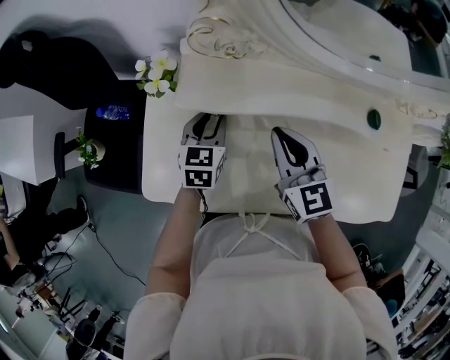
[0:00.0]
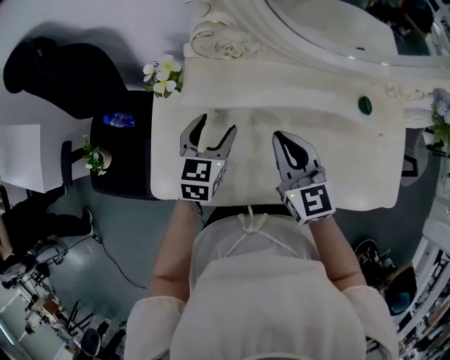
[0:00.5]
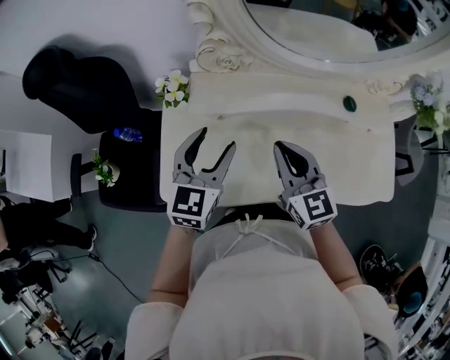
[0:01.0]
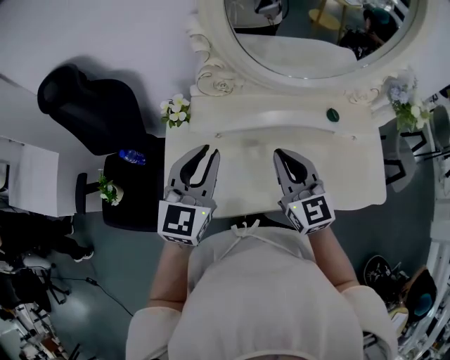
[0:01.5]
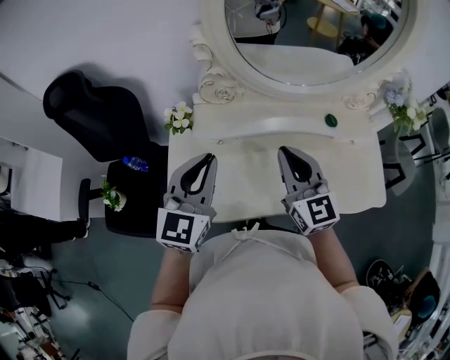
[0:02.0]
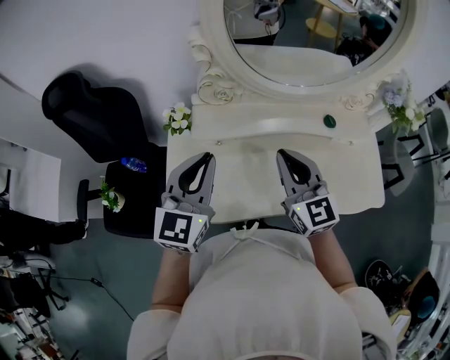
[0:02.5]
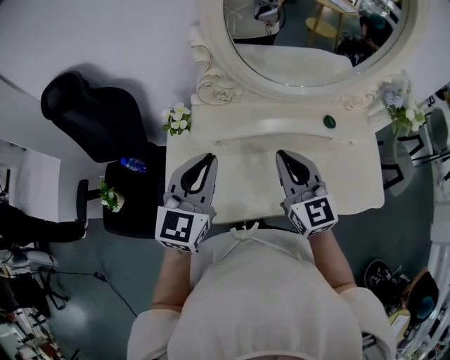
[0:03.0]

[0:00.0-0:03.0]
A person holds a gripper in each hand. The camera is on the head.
0:00.0 to 0:01.5: The right gripper is displaced upward and backward by approximately 15 cm, while the left gripper is displaced upward and backward by roughly 30 cm, turns by some 30 degrees, and opens, then closes again.
0:01.5 to 0:03.0: The grippers make only small movements.

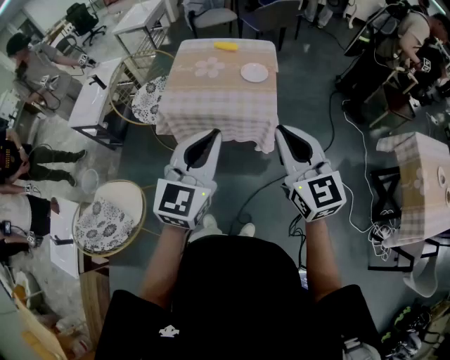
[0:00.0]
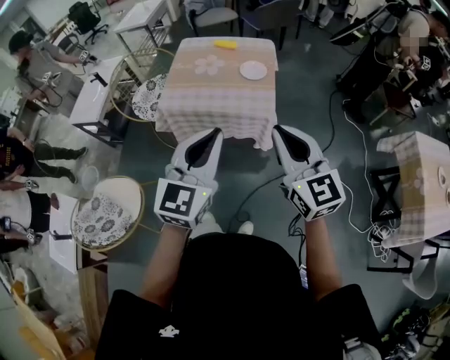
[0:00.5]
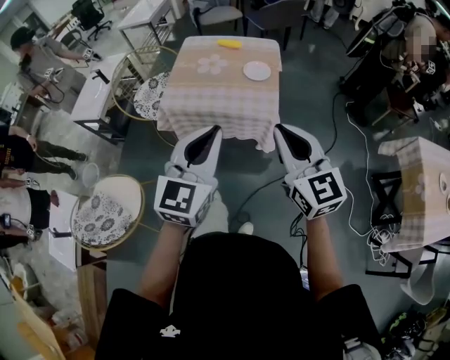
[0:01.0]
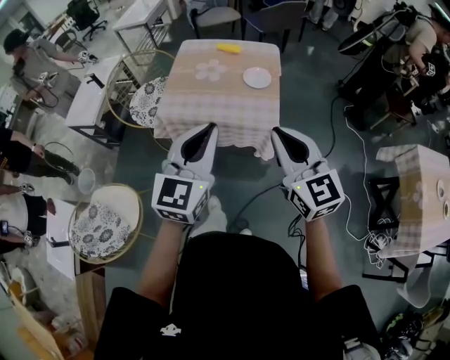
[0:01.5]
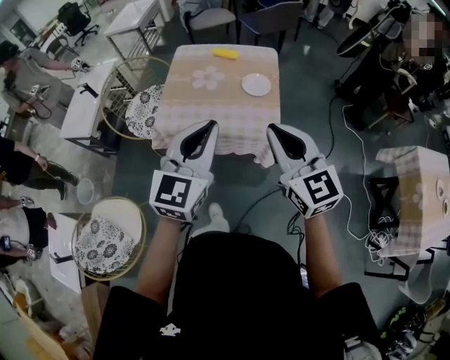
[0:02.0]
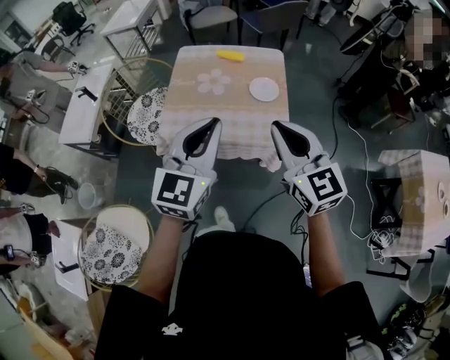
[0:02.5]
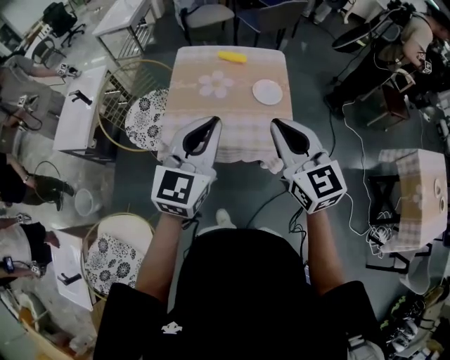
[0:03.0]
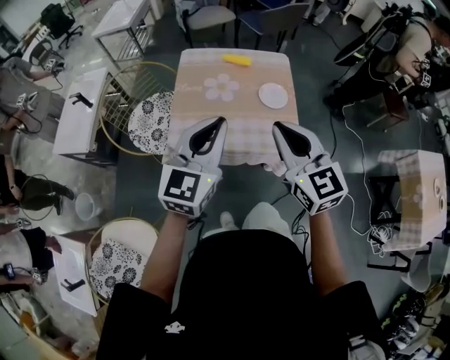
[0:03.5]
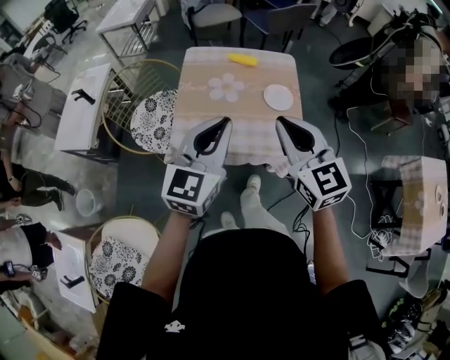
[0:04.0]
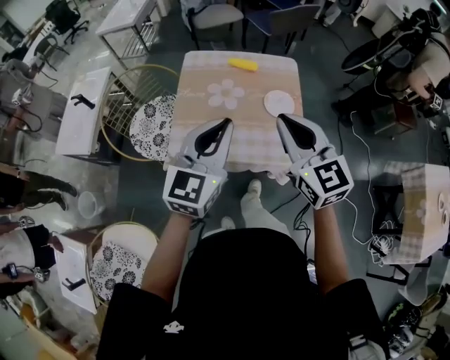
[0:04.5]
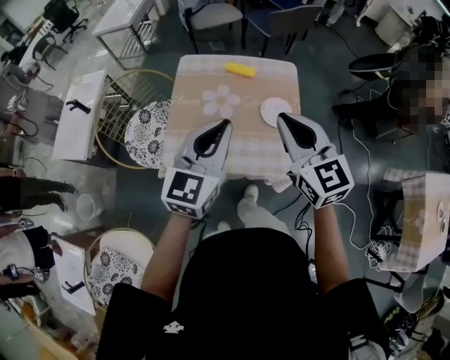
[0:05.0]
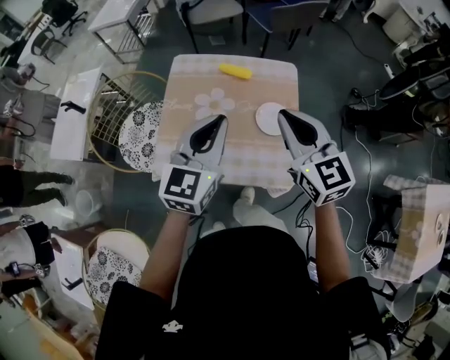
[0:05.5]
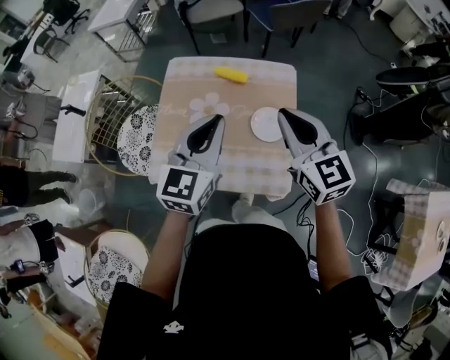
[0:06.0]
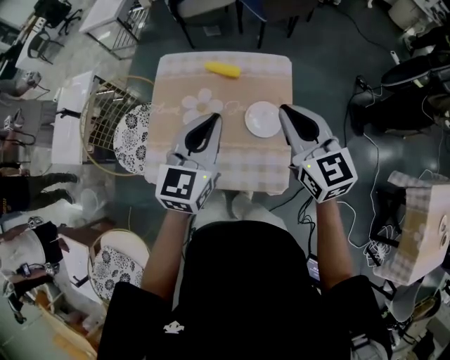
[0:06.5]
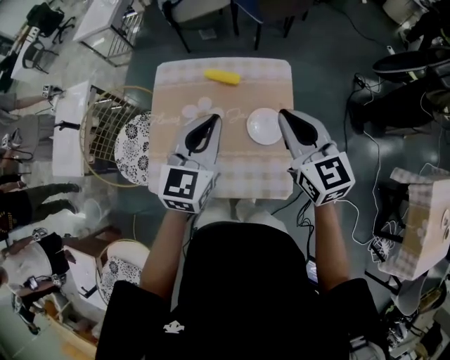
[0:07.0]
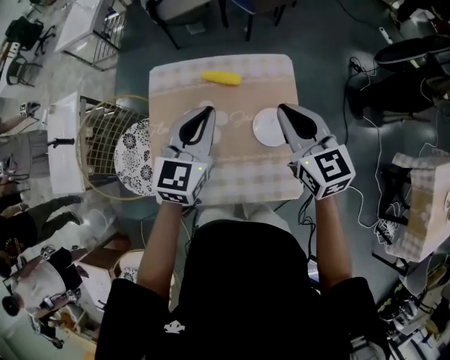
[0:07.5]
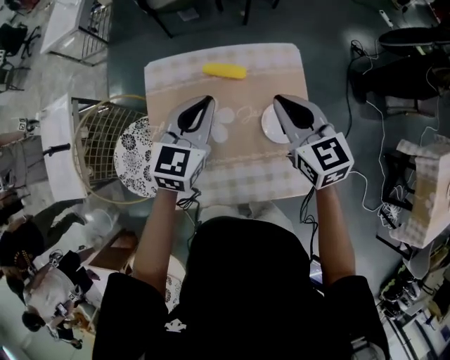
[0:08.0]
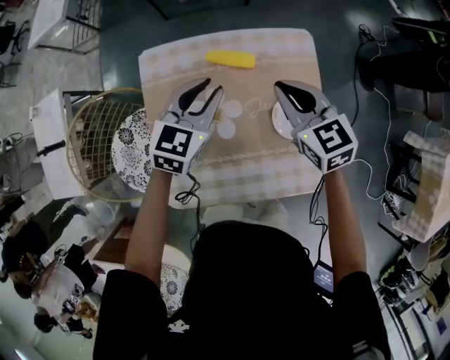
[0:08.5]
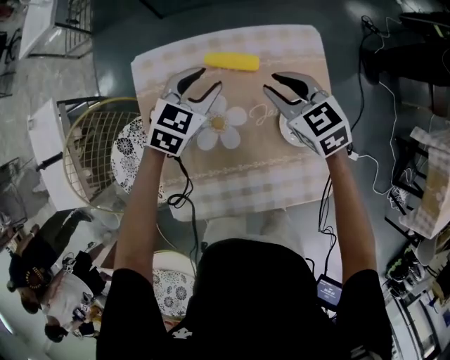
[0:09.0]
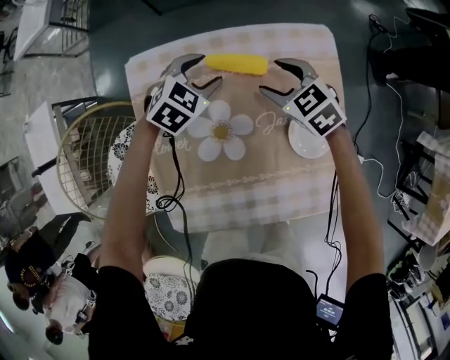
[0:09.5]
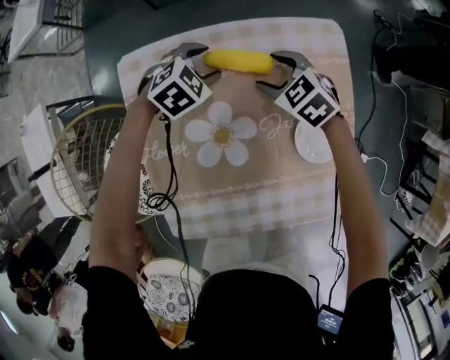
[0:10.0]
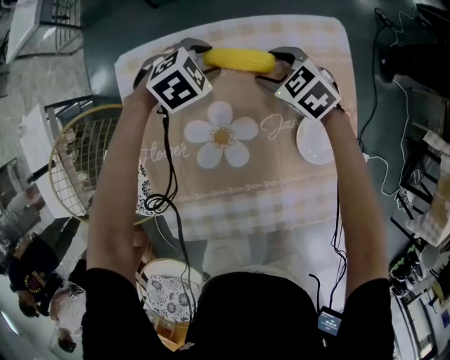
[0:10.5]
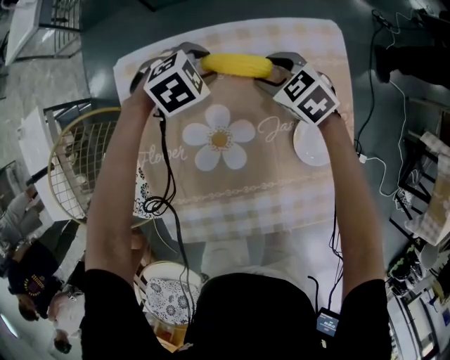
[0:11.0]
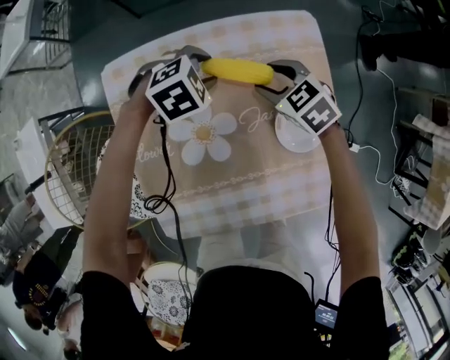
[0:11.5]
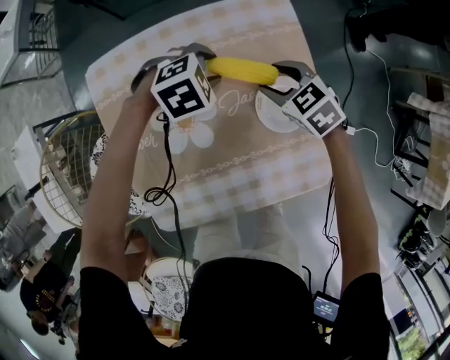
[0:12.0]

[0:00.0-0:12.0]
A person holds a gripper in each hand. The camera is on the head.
0:00.0 to 0:02.0: Both grippers travel together forward, approximately 15 cm.
0:02.0 to 0:04.0: The grippers both shift forward and to the left by some 15 cm.
0:04.0 to 0:06.0: The grippers both shift forward and to the right by about 25 cm.
0:06.0 to 0:08.0: Both grippers move forward and downward, approximately 20 cm.
0:08.0 to 0:10.0: Both grippers travel together downward and forward, about 35 cm. The right gripper tilts its fingers some 30 degrees downward, and opens its fingers. The left gripper tips its fingers downward by roughly 40 degrees, and opens.
0:10.0 to 0:12.0: The left gripper ends up some 15 cm from where it was. Meanwhile the right gripper moves about 15 cm.

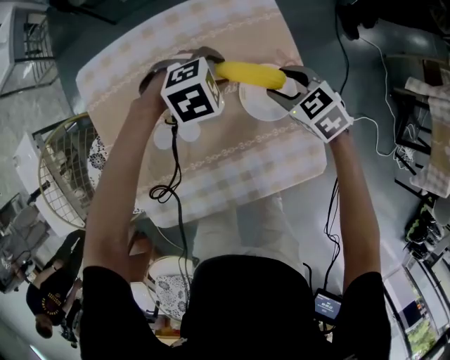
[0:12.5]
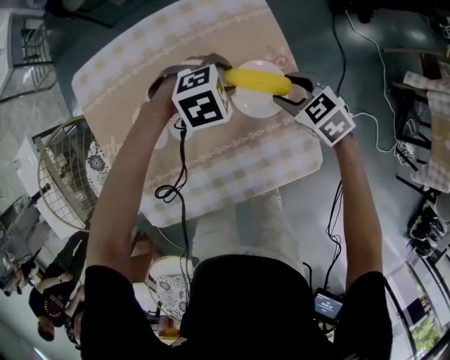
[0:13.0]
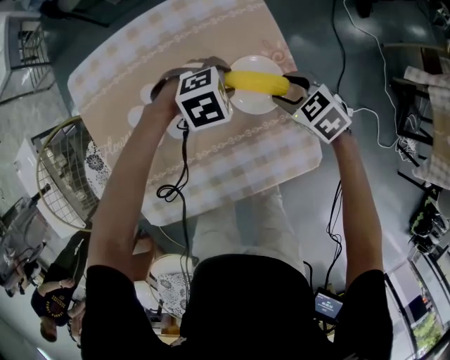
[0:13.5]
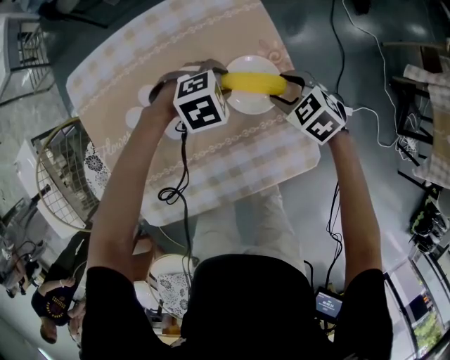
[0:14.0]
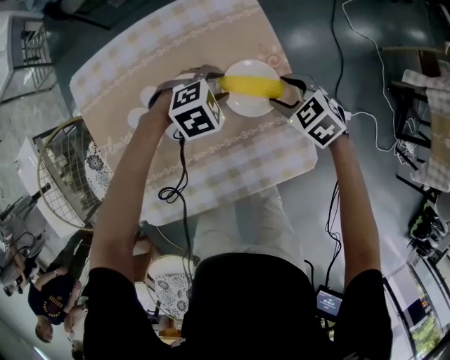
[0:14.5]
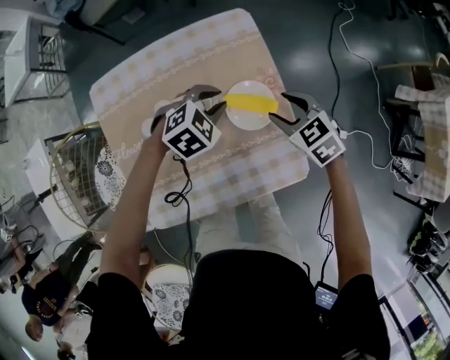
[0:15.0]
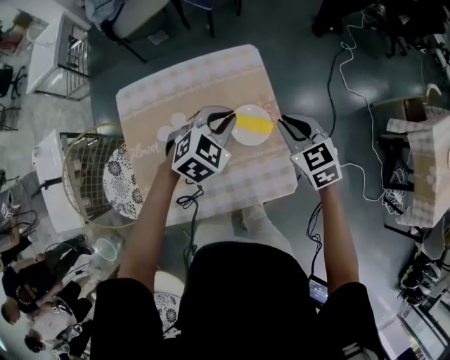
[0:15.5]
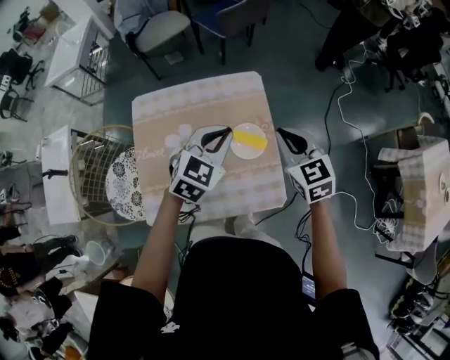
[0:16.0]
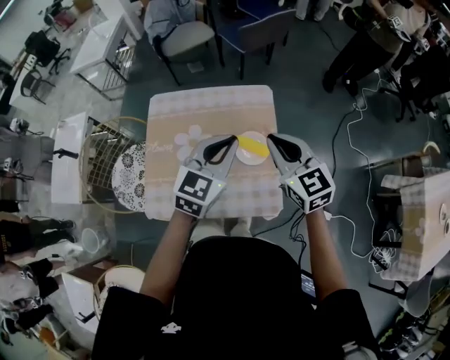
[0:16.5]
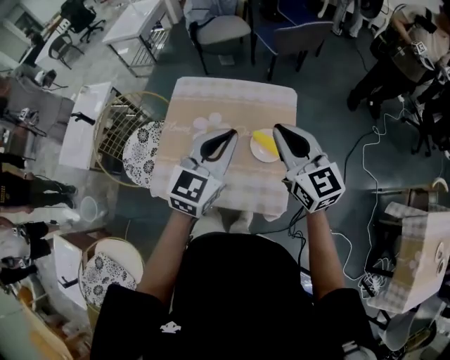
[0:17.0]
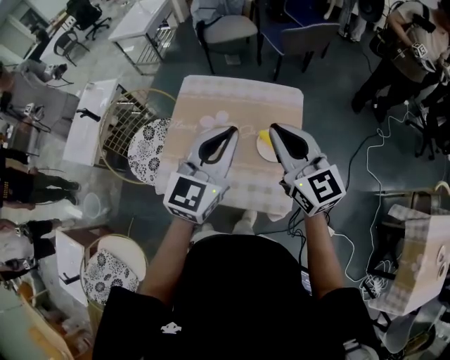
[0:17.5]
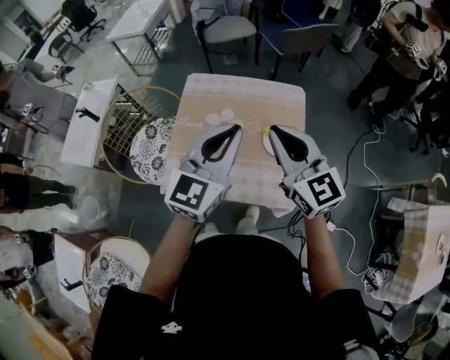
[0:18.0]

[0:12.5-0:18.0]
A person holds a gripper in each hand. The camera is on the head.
0:12.5 to 0:14.5: The right gripper moves approximately 5 cm; the left gripper changes place by approximately 5 cm.
0:14.5 to 0:16.0: Both grippers travel together upward, some 30 cm. The right gripper tilts its fingers some 30 degrees upward, and closes. The left gripper points its fingers roughly 30 degrees further upward, and closes its fingers.
0:16.0 to 0:18.0: The right gripper moves to the left, upward and backward, some 20 cm, and changes its angle by approximately 30 degrees, while the left gripper goes roughly 20 cm upward, backward and to the left, and swivels some 40 degrees.

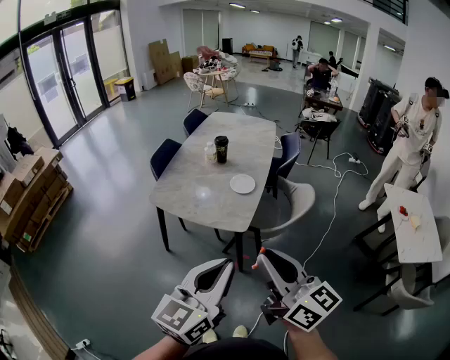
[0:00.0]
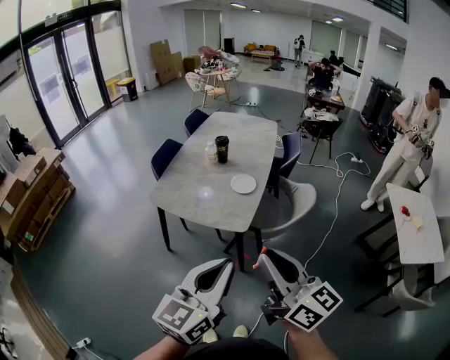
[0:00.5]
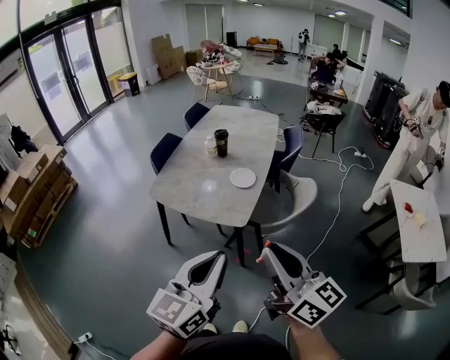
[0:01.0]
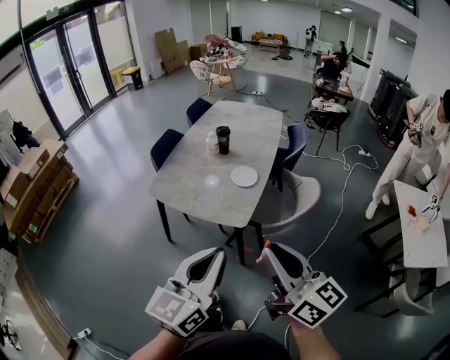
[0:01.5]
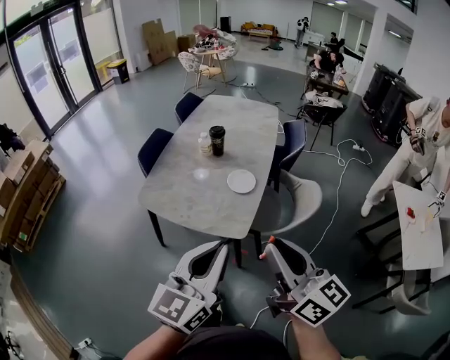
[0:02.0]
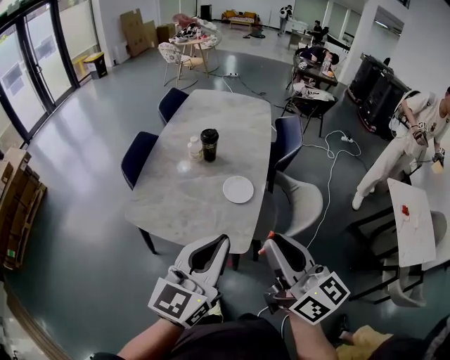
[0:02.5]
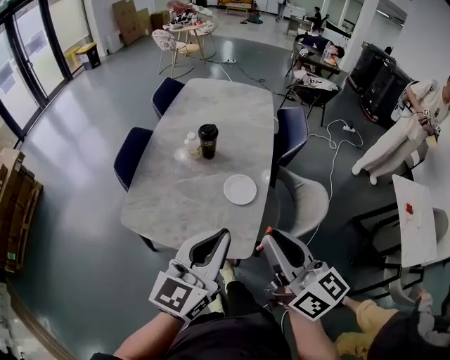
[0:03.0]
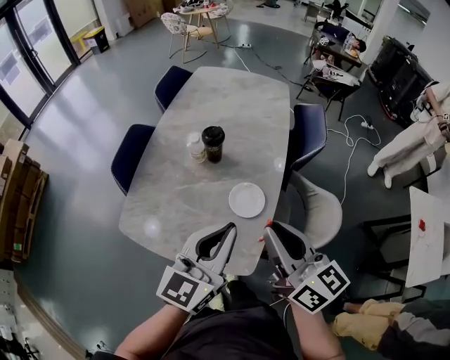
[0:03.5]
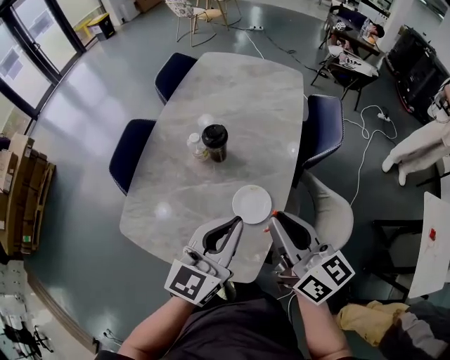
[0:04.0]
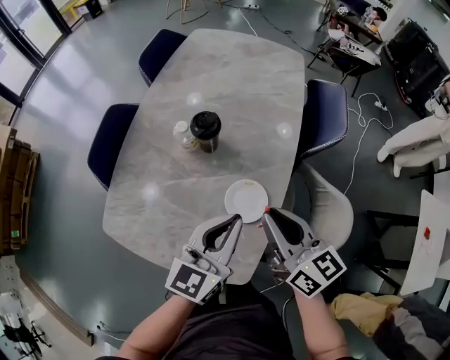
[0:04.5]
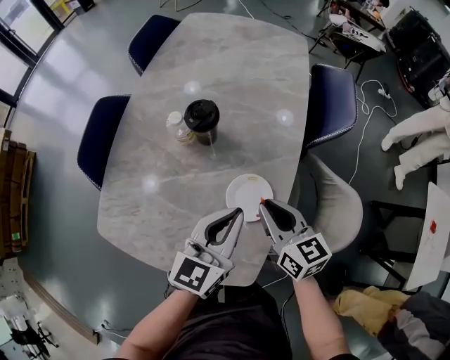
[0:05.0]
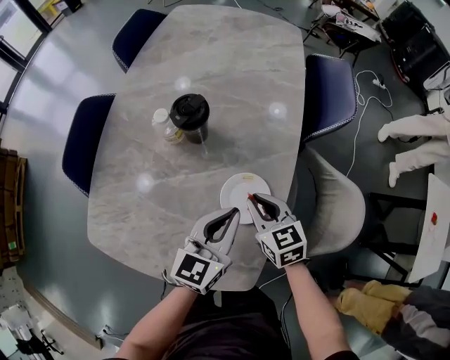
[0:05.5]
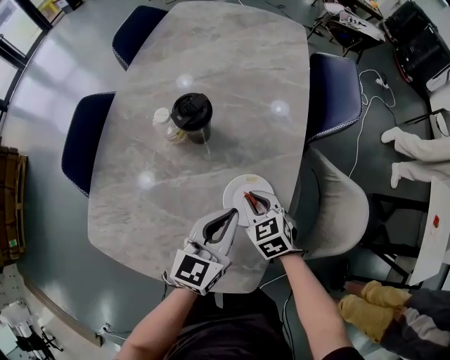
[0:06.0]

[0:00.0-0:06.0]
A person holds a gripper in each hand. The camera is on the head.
0:00.0 to 0:02.0: The two grippers go roughly 15 cm forward.
0:02.0 to 0:04.0: The two grippers travel together, forward, about 40 cm.
0:04.0 to 0:06.0: The left gripper is displaced downward by approximately 20 cm; the right gripper is displaced downward by about 35 cm, and points its fingers approximately 50 degrees further downward.
